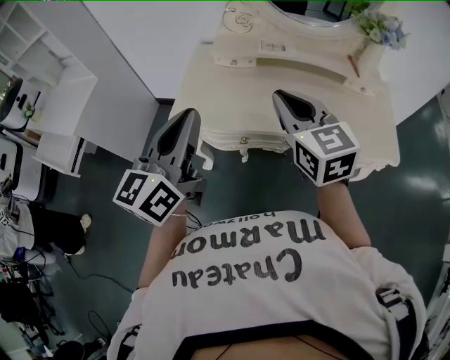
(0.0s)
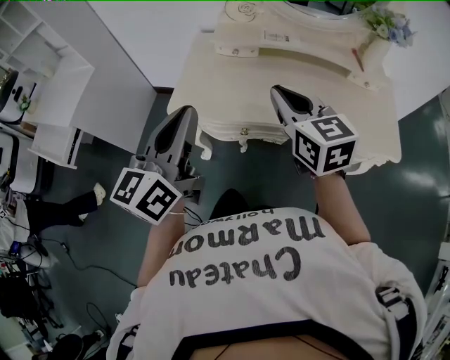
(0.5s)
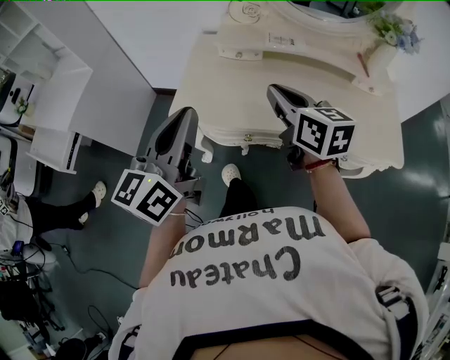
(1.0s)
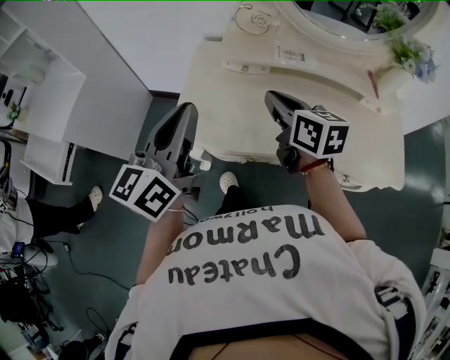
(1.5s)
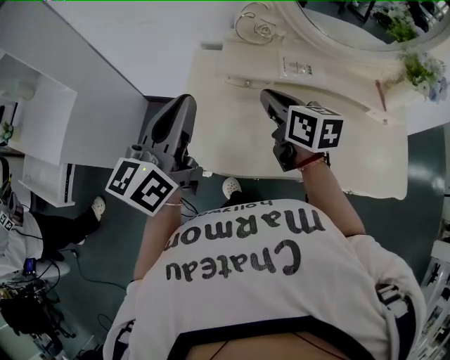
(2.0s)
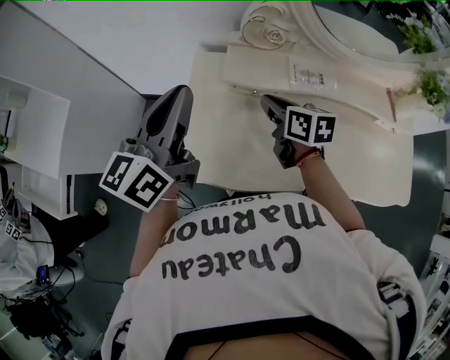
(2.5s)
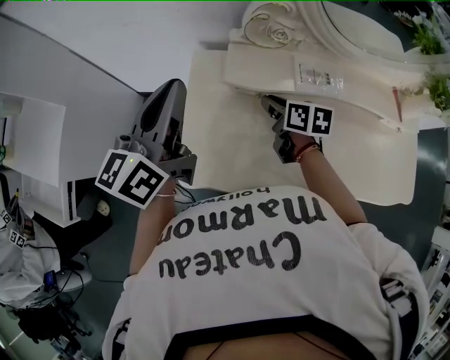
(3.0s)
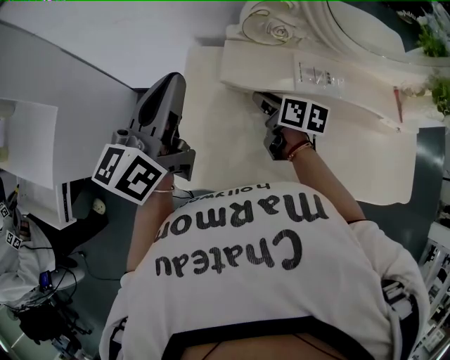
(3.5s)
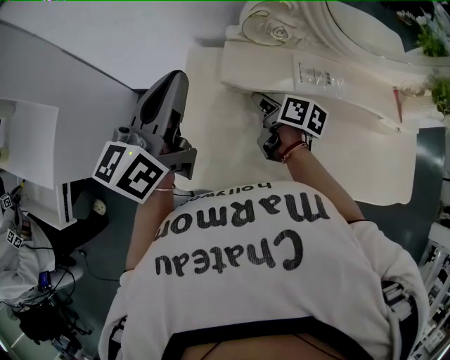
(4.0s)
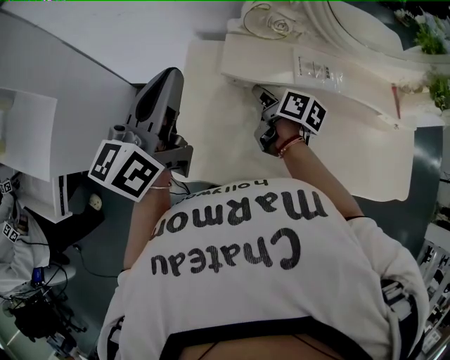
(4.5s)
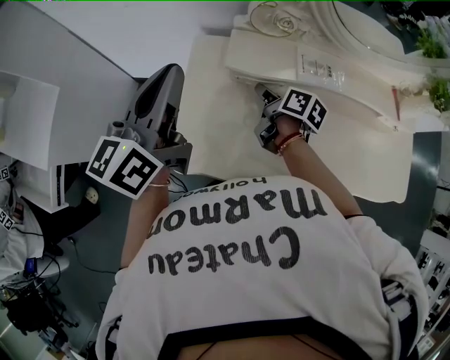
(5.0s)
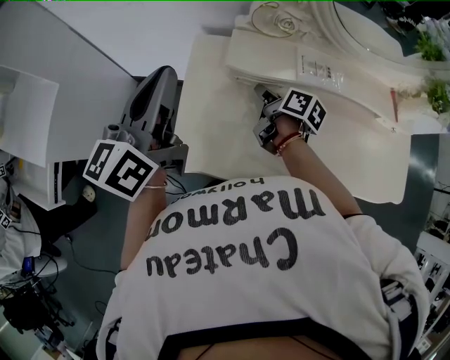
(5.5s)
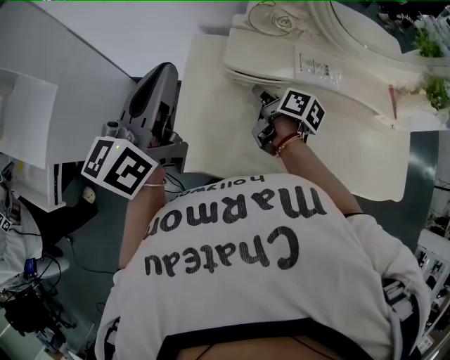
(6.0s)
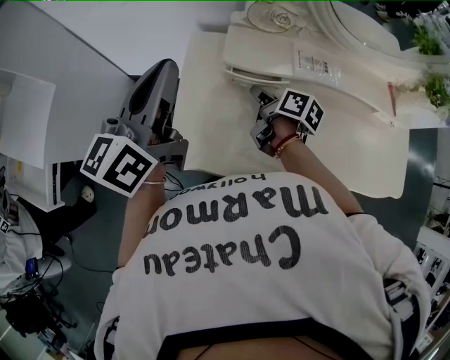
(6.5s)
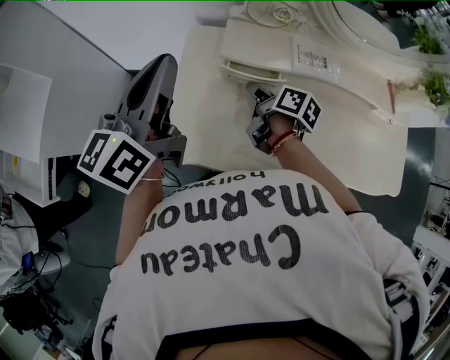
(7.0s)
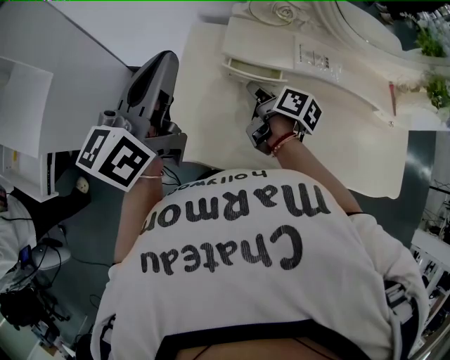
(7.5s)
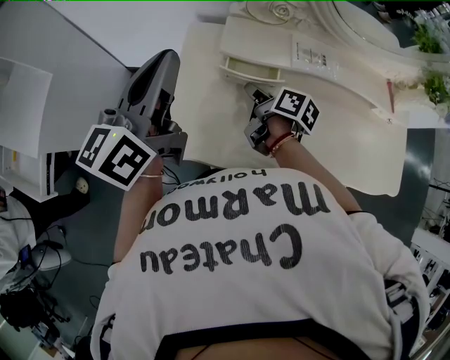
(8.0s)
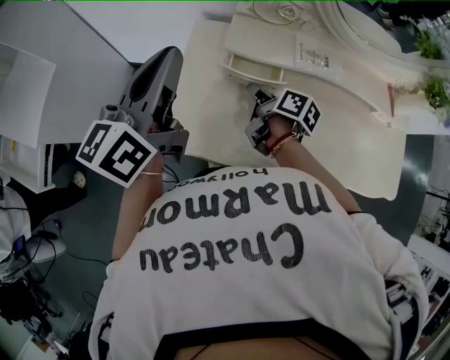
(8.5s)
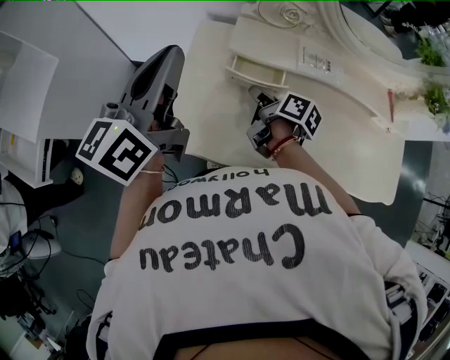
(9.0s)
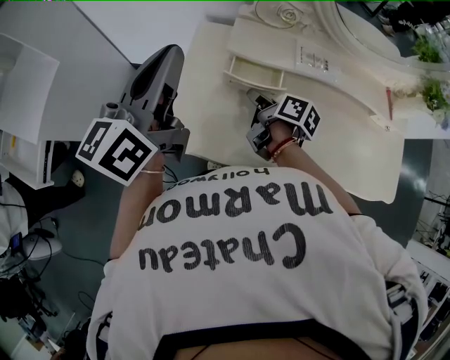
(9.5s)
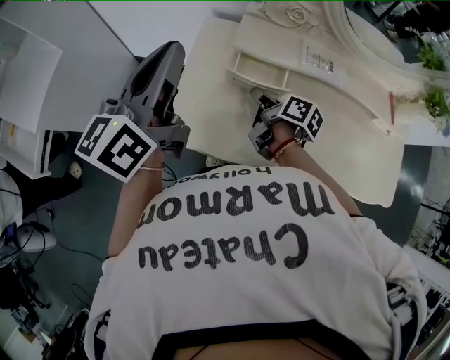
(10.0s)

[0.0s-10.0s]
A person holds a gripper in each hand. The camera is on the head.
0.0s to 2.0s: The right gripper heads forward and downward, covering approximately 25 cm, and rotates roughly 30 degrees. The left gripper moves forward, about 25 cm.
2.0s to 4.0s: The left gripper goes some 15 cm forward, while the right gripper heads downward and forward, covering roughly 20 cm, turns by about 30 degrees, and opens its fingers.
4.0s to 6.0s: The left gripper moves about 5 cm.
6.0s to 10.0s: The grippers stay close to where they were, moving slightly.

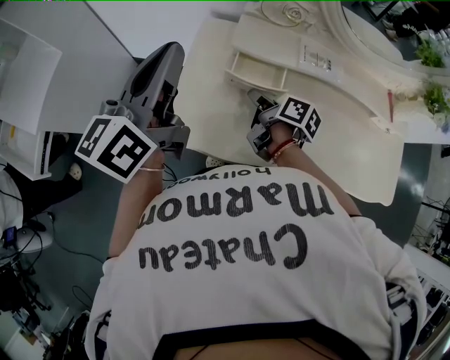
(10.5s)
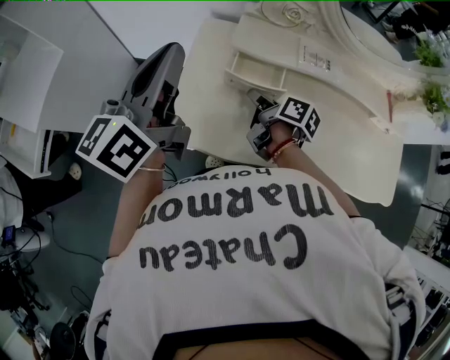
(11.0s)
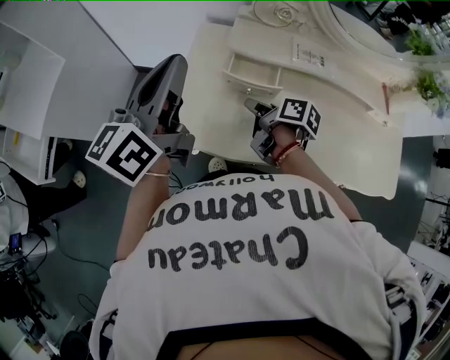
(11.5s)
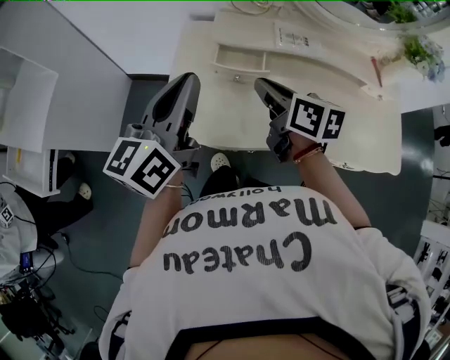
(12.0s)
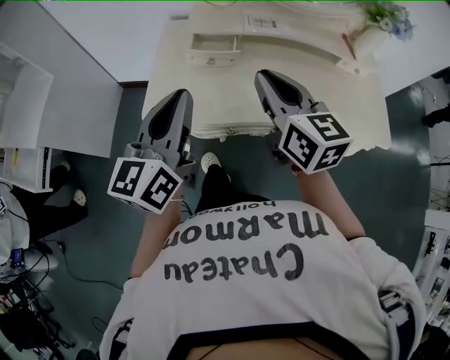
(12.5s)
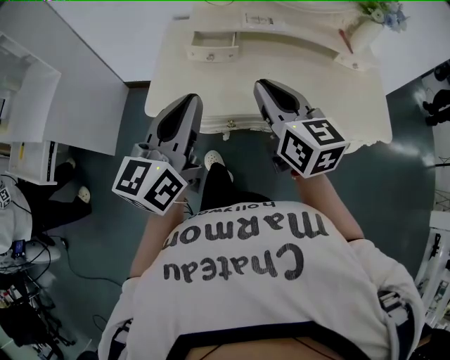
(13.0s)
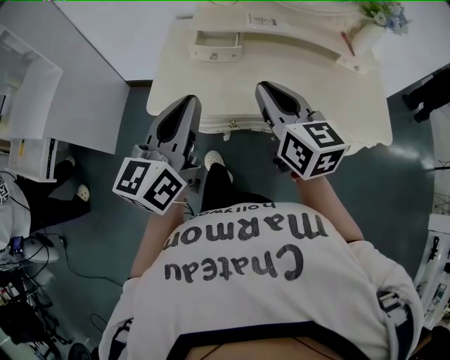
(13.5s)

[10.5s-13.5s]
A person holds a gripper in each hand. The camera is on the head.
10.5s to 12.0s: The left gripper moves backward and to the right, roughly 10 cm. Meanwhile the right gripper travels upward and backward by about 15 cm, and swivels some 30 degrees.
12.0s to 13.5s: The right gripper travels backward and upward by approximately 20 cm, and swivels roughly 30 degrees, while the left gripper goes approximately 15 cm backward.

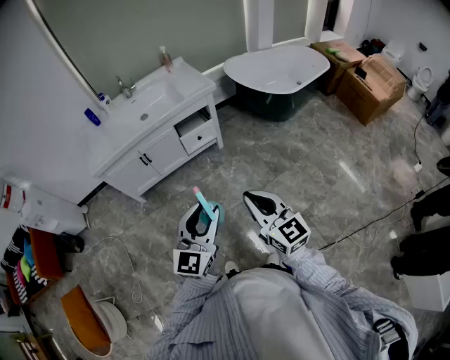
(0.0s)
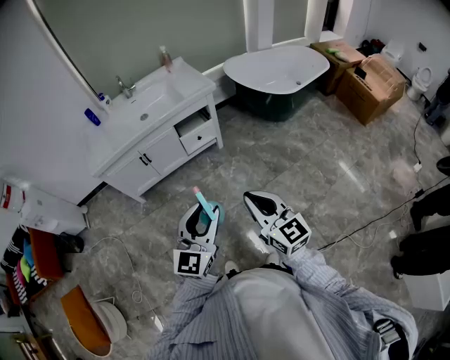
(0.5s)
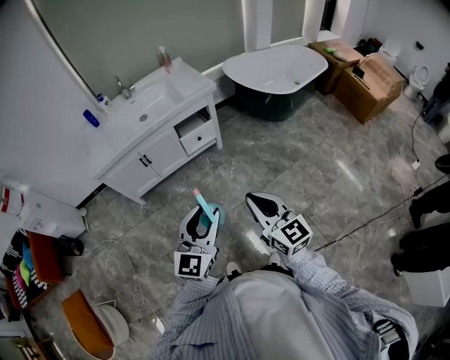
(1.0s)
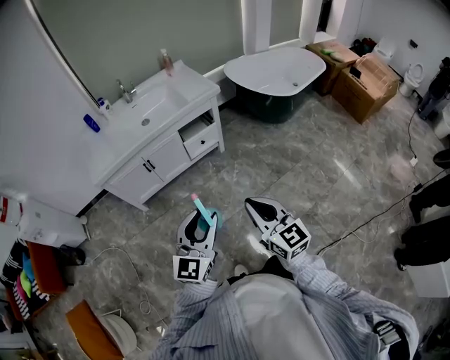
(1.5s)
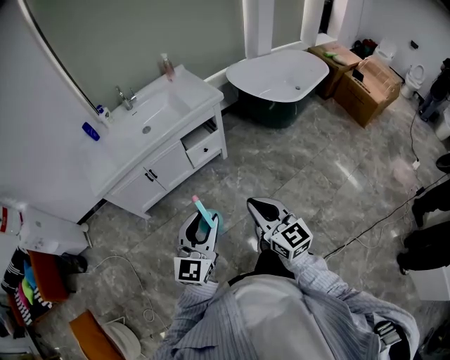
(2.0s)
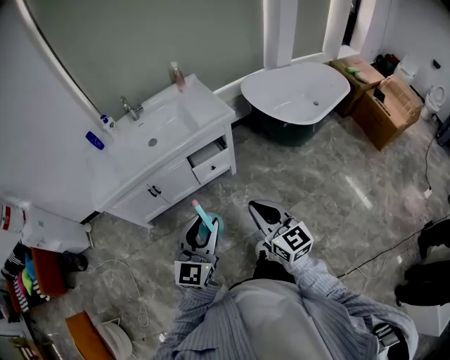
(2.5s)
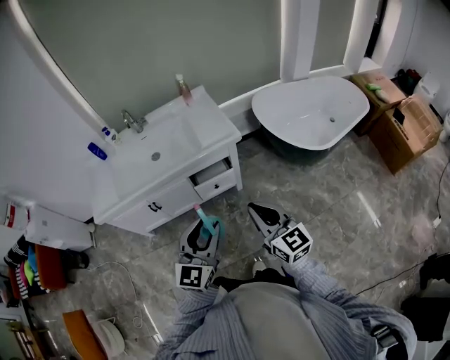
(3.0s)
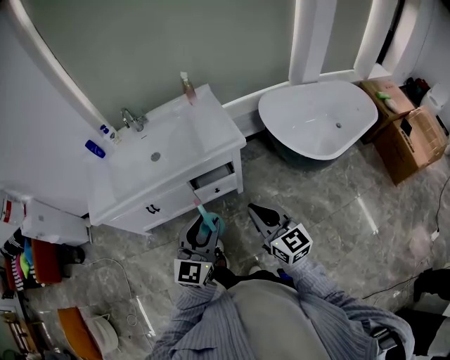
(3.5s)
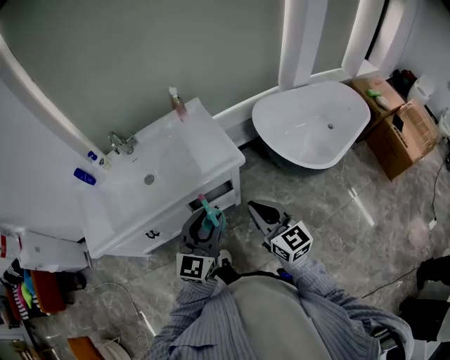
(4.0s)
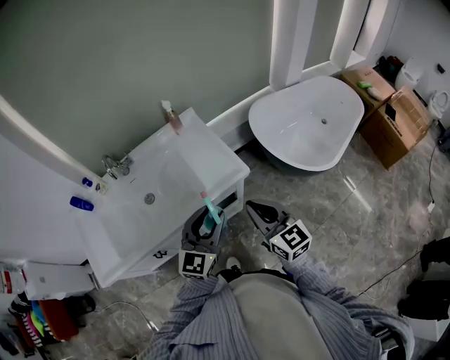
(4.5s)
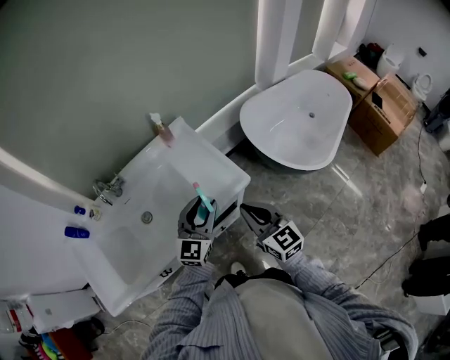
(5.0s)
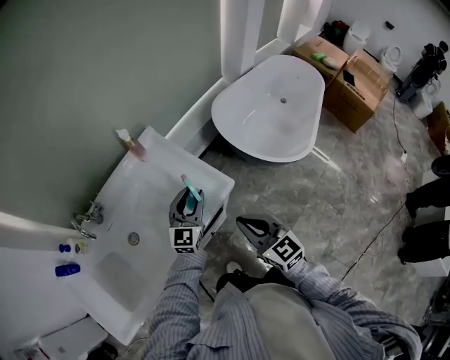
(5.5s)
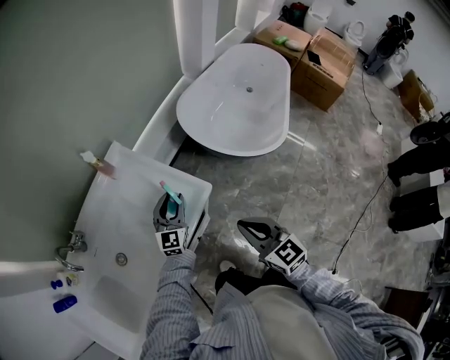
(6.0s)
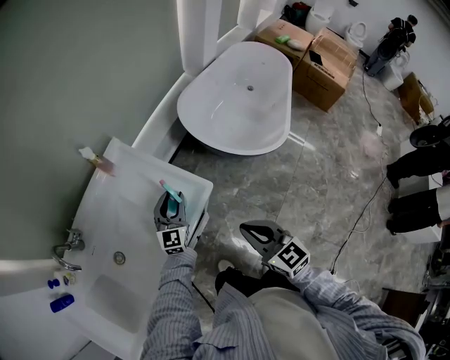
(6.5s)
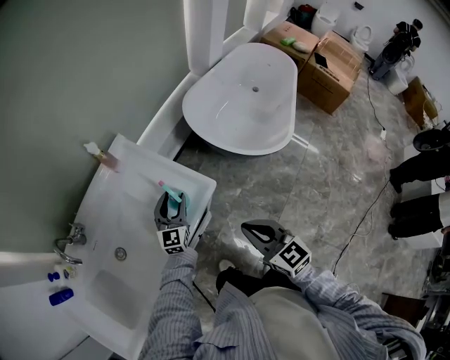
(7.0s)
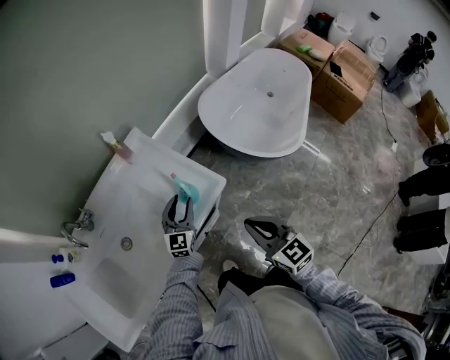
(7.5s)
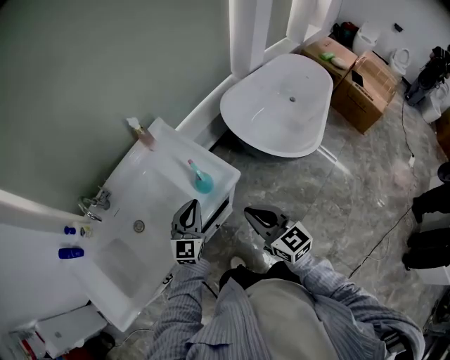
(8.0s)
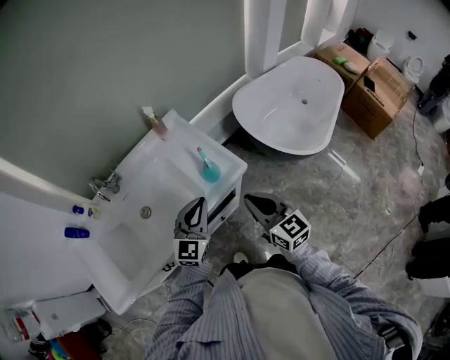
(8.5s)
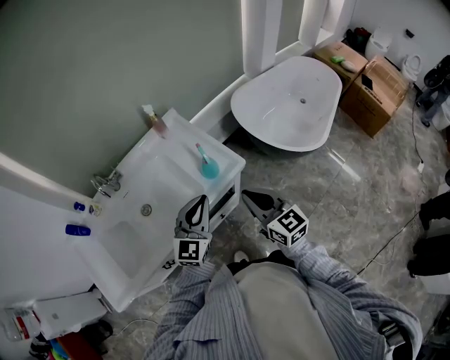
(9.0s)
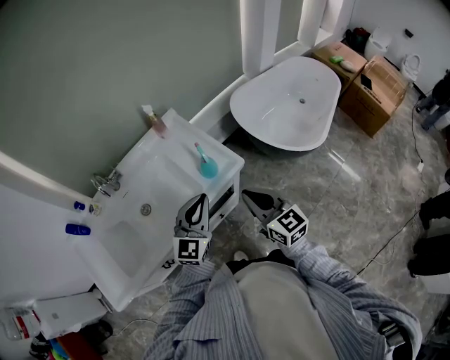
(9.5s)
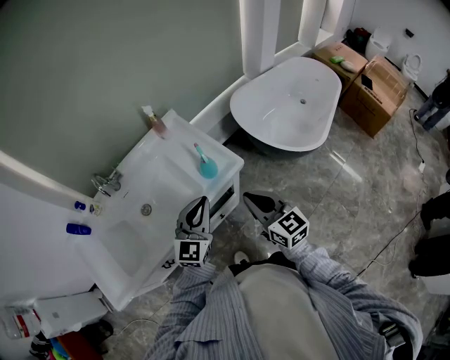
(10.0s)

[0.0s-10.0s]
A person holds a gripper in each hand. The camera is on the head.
0.0s to 2.0s: The right gripper moves forward and to the left, some 10 cm. Meanwhile the left gripper heads to the left and forward, covering approximately 15 cm.
2.0s to 4.0s: The two grippers travel together, forward, approximately 50 cm.
4.0s to 6.0s: The right gripper moves forward and downward, about 15 cm, and turns by some 30 degrees, while the left gripper moves forward and downward, about 40 cm.
6.0s to 8.0s: The left gripper shifts some 15 cm backward and upward, and closes.
8.0s to 10.0s: The left gripper is displaced backward and upward by some 15 cm.

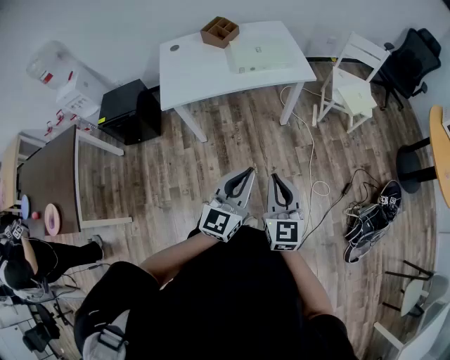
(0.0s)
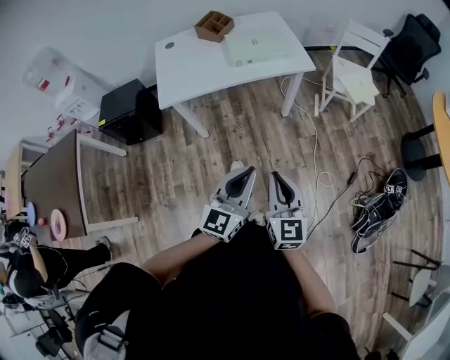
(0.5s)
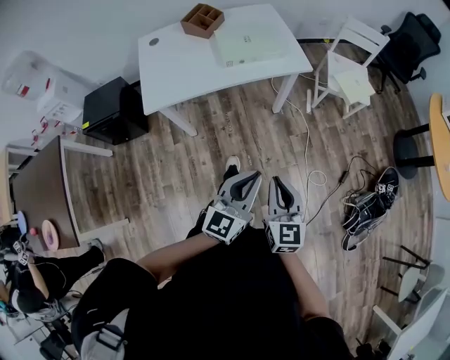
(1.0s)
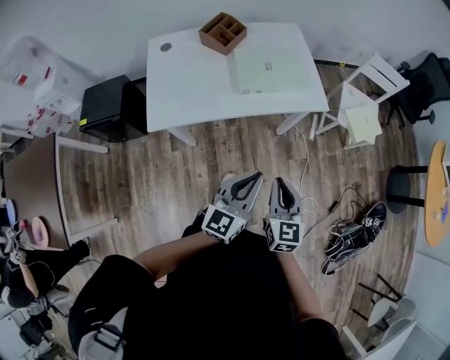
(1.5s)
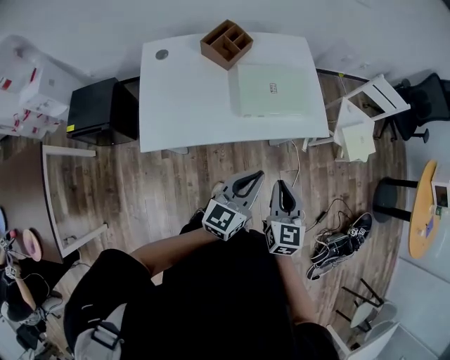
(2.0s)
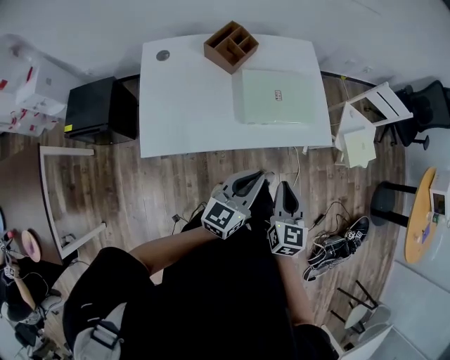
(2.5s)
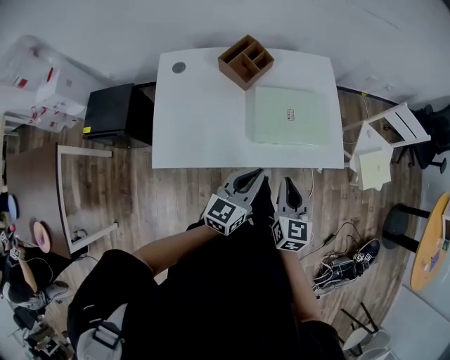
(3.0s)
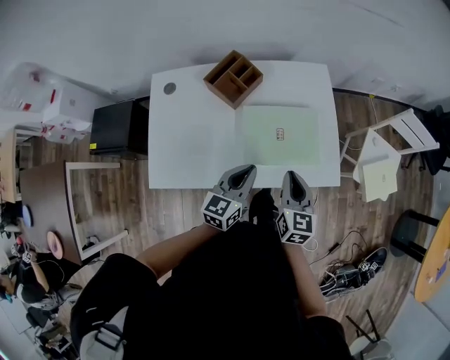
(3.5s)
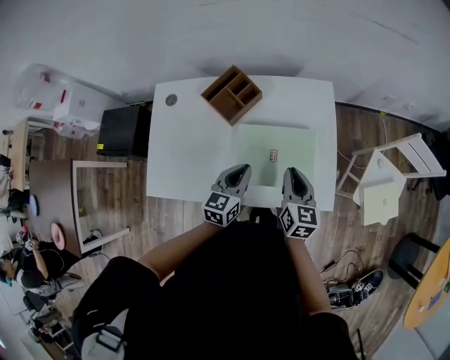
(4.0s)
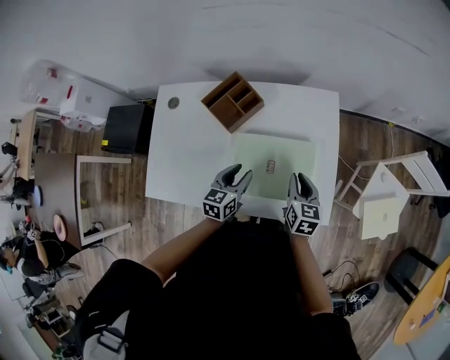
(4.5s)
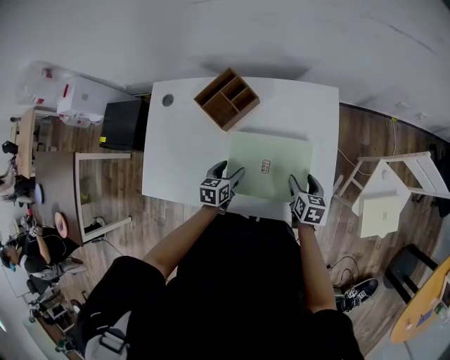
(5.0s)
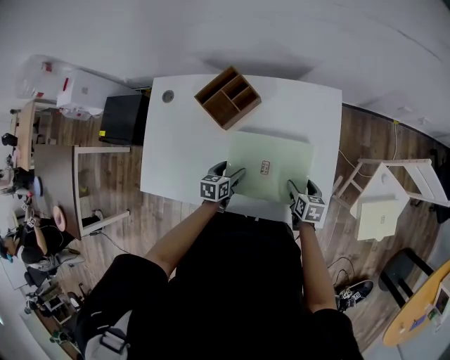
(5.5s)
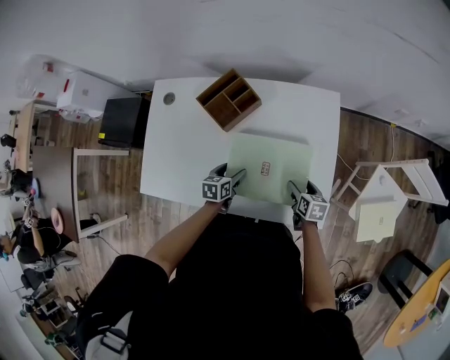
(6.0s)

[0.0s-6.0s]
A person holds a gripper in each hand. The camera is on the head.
0.0s to 2.0s: Both grippers travel together forward, some 35 cm.
2.0s to 4.0s: The grippers both shift forward by approximately 35 cm. The left gripper turns by about 30 degrees.
4.0s to 6.0s: The left gripper goes about 20 cm downward, turns by roughly 30 degrees, and opens. Meanwhile the right gripper travels downward and to the right by approximately 20 cm, swivels approximately 30 degrees, and opens its fingers.
